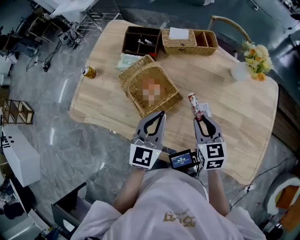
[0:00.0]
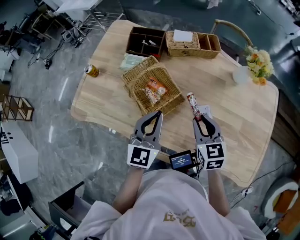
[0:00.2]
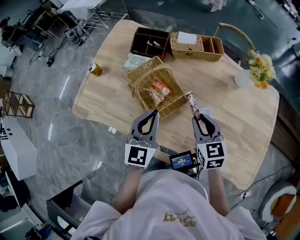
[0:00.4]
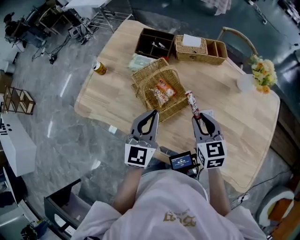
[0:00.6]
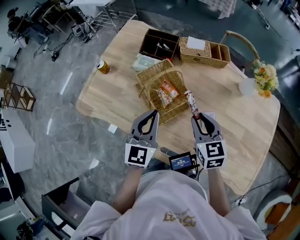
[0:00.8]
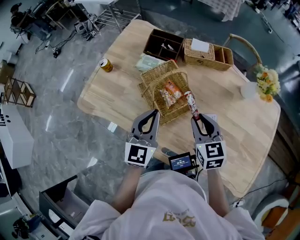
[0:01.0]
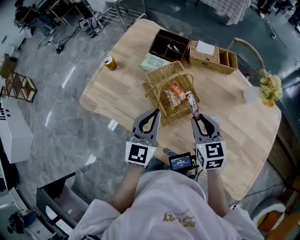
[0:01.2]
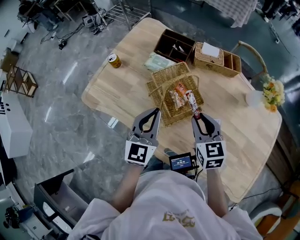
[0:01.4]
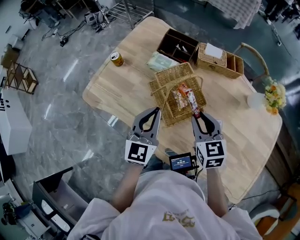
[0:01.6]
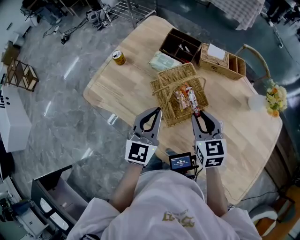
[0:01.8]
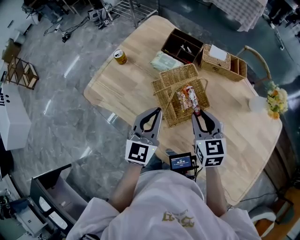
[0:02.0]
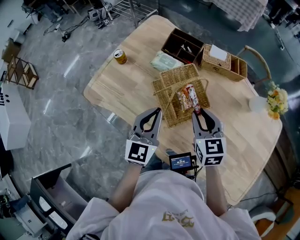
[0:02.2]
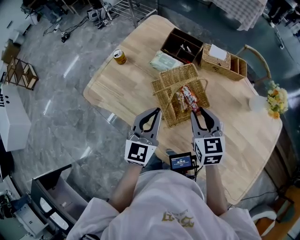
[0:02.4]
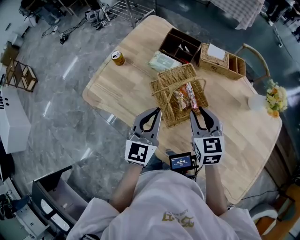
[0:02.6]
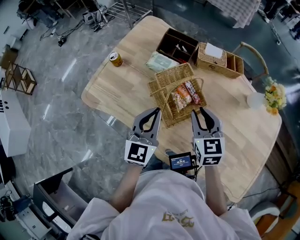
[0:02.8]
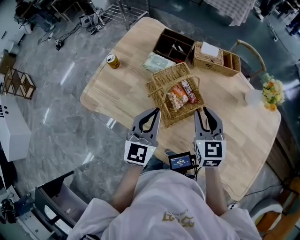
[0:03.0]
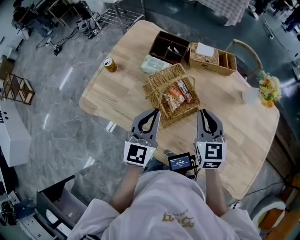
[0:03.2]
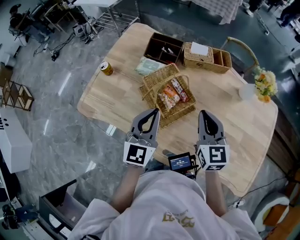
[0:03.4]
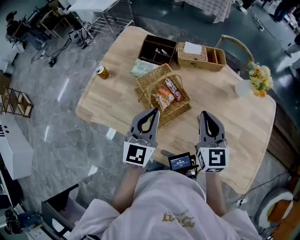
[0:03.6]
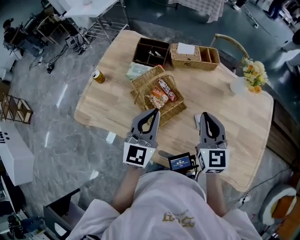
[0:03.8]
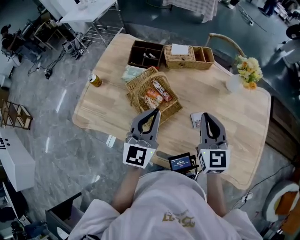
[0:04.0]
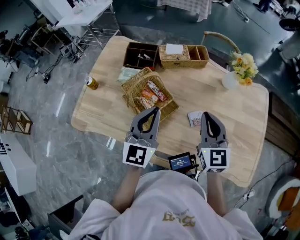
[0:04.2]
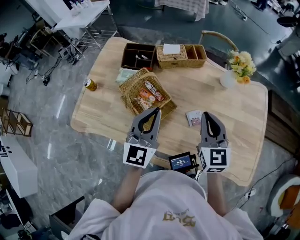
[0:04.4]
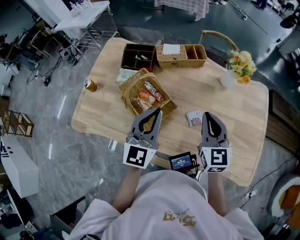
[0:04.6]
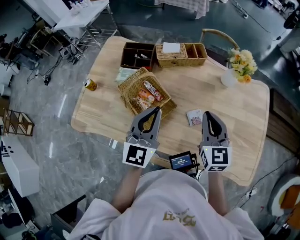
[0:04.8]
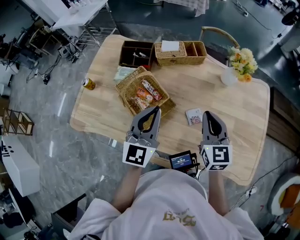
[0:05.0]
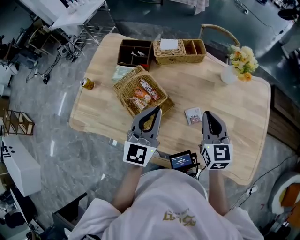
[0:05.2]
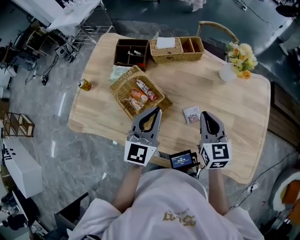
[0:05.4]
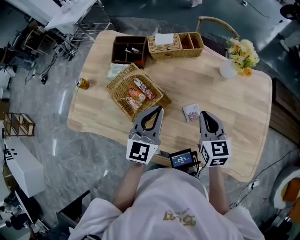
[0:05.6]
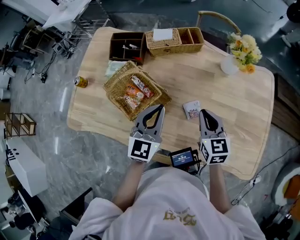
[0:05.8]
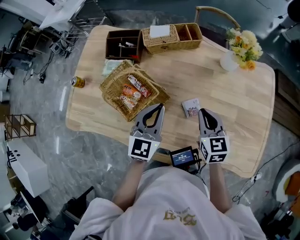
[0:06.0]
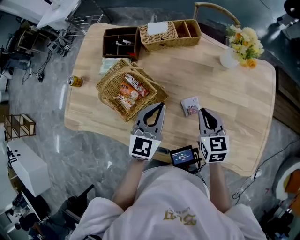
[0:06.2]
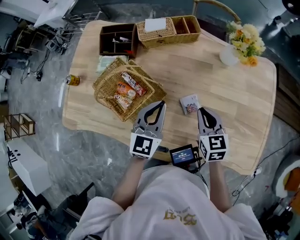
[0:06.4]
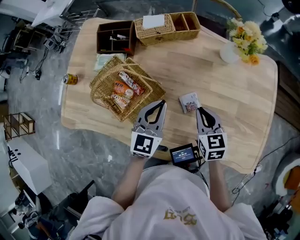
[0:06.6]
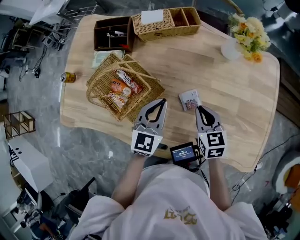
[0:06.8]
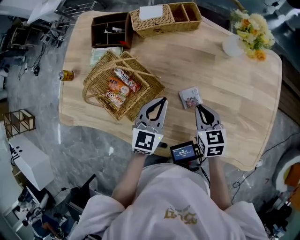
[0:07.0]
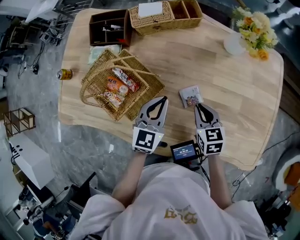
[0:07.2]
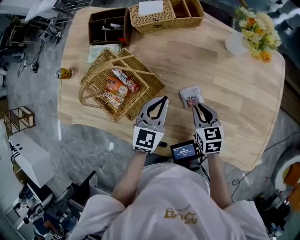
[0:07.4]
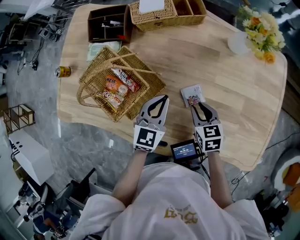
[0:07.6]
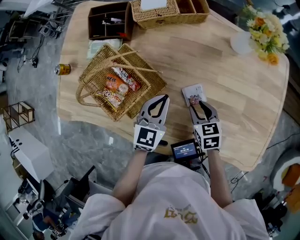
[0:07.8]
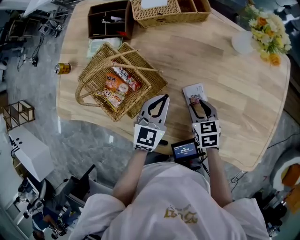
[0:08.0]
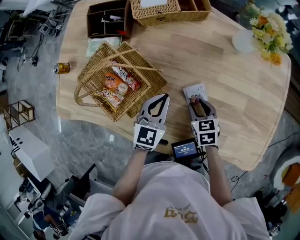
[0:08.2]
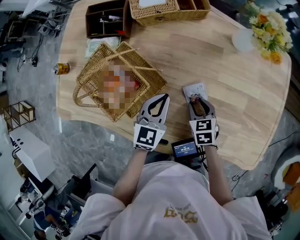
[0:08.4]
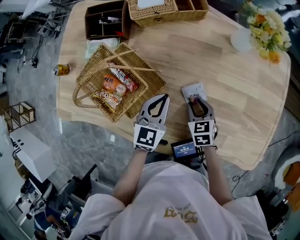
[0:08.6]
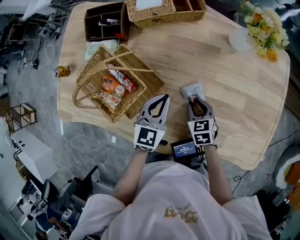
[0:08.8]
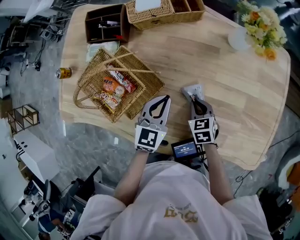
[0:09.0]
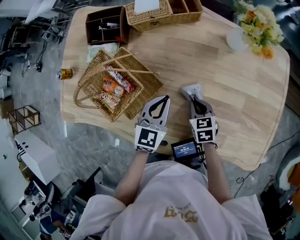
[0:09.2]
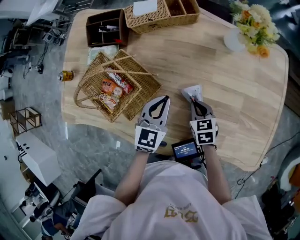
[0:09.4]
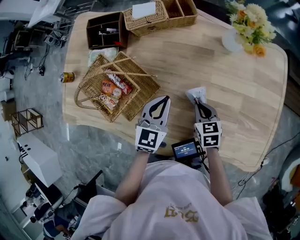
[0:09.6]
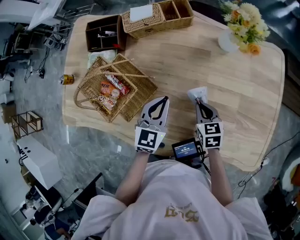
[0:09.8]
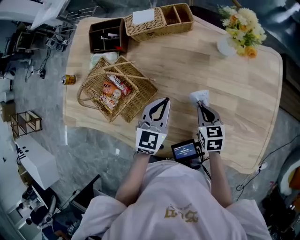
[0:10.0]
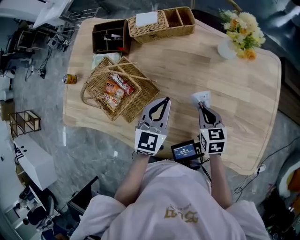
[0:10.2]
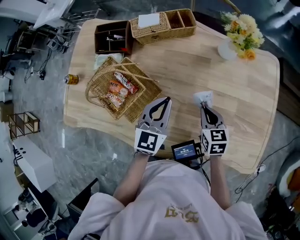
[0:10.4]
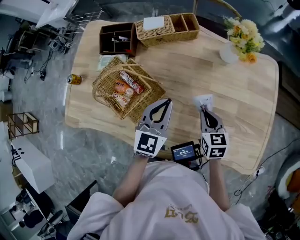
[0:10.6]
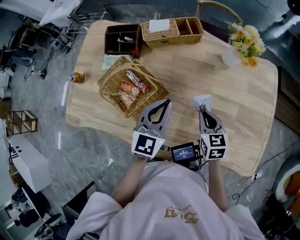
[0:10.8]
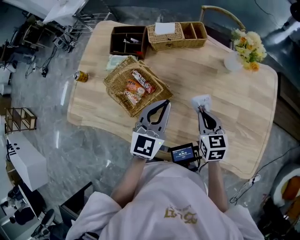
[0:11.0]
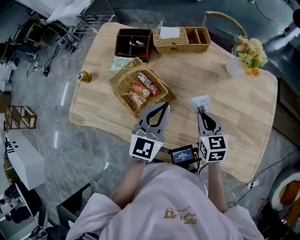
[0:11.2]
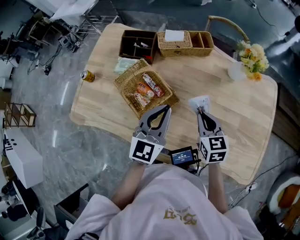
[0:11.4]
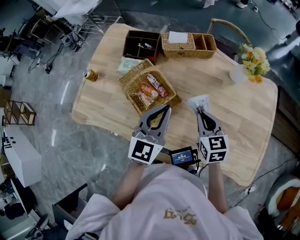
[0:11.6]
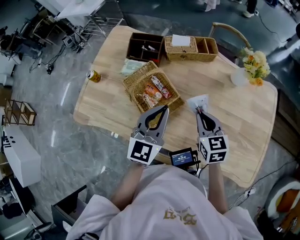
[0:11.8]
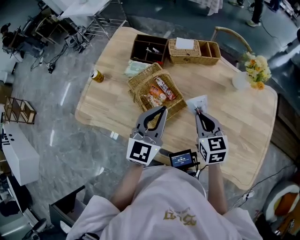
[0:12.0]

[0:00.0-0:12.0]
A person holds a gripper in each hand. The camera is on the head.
0:00.0 to 0:01.6: Both grippers move to the left, roughly 15 cm.
0:01.6 to 0:03.0: The grippers move only a little.
0:03.0 to 0:04.4: The left gripper shifts roughly 15 cm to the right and upward. The right gripper moves to the right, roughly 15 cm, and closes.
0:04.4 to 0:06.0: The right gripper goes about 15 cm downward. The left gripper heads downward and to the right, covering roughly 10 cm.
0:06.0 to 0:07.6: The two grippers go roughly 15 cm downward. The right gripper swivels roughly 20 degrees.
0:07.6 to 0:09.0: The grippers make only small movements.
0:09.0 to 0:10.4: The right gripper shifts roughly 10 cm upward and to the right; the left gripper travels upward by about 10 cm.
0:10.4 to 0:12.0: Both grippers travel together to the left and upward, approximately 20 cm.

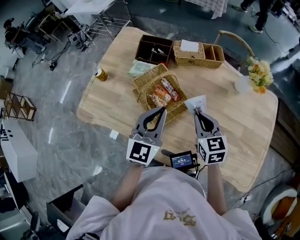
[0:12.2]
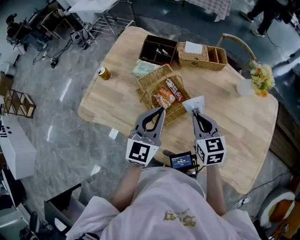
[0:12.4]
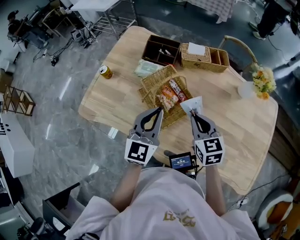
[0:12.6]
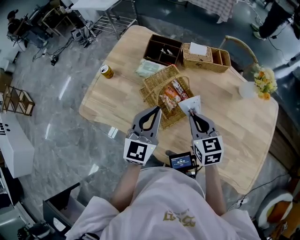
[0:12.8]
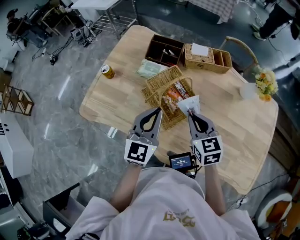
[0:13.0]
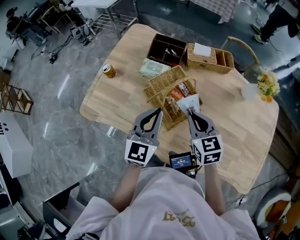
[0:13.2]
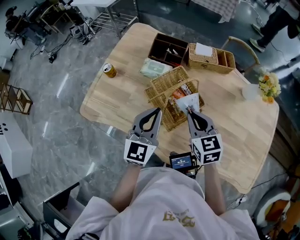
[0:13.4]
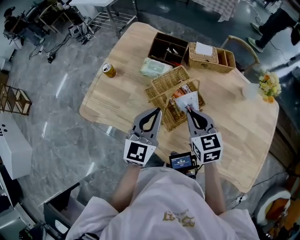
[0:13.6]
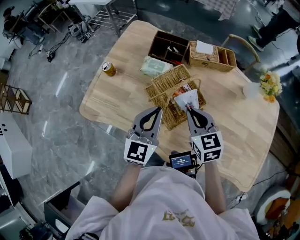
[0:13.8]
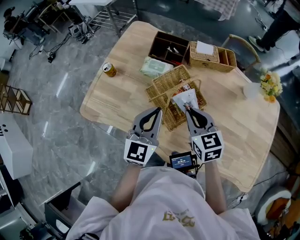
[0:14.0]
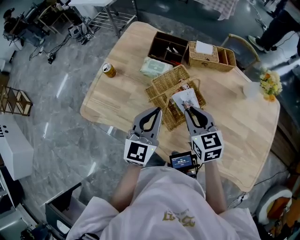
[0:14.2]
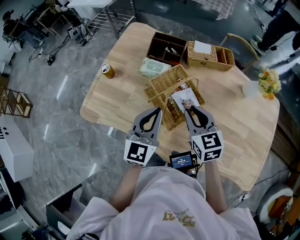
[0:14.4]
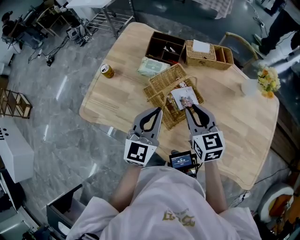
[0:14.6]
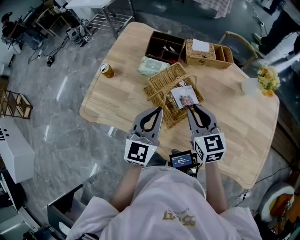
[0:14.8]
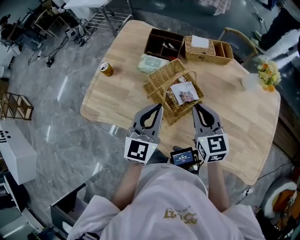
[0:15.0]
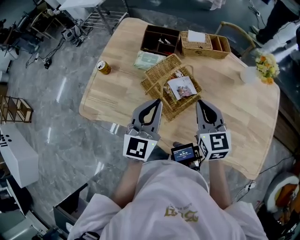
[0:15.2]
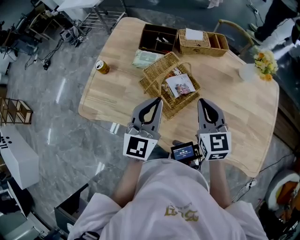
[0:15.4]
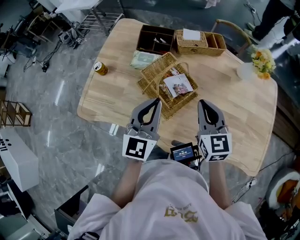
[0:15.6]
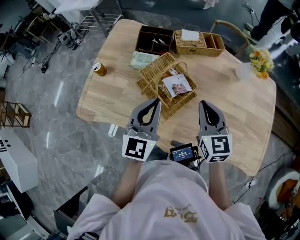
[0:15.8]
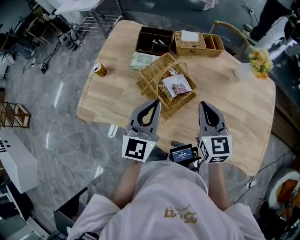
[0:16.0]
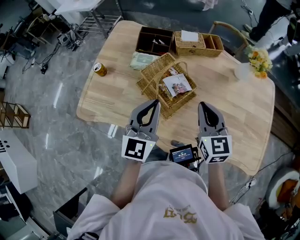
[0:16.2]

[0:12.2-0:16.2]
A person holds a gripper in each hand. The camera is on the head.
0:12.2 to 0:13.6: The two grippers go about 10 cm to the left.
0:13.6 to 0:14.8: The grippers move only a little.
0:14.8 to 0:16.2: The right gripper moves to the right, about 5 cm.

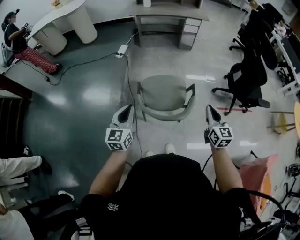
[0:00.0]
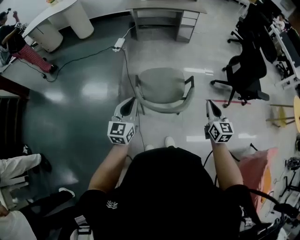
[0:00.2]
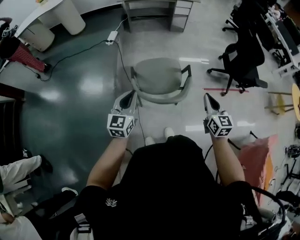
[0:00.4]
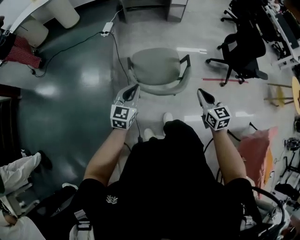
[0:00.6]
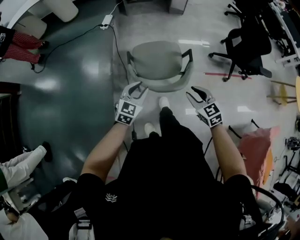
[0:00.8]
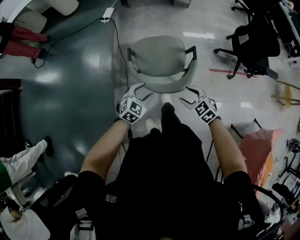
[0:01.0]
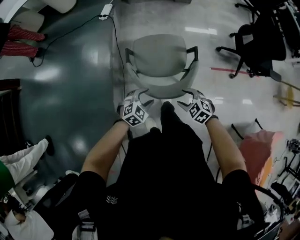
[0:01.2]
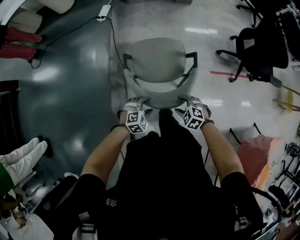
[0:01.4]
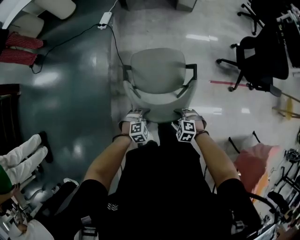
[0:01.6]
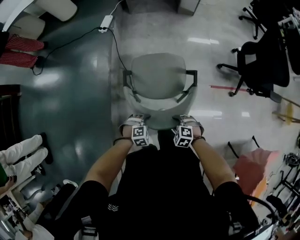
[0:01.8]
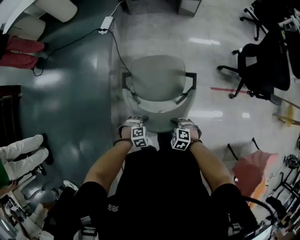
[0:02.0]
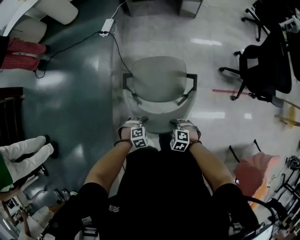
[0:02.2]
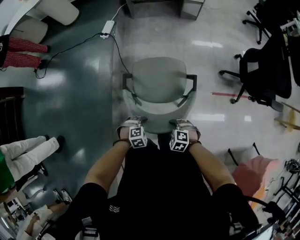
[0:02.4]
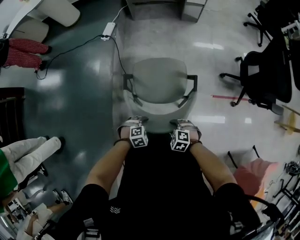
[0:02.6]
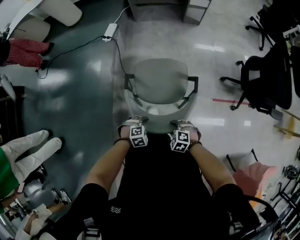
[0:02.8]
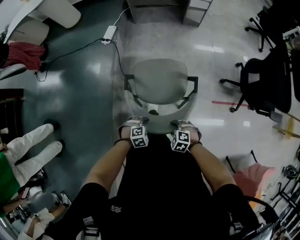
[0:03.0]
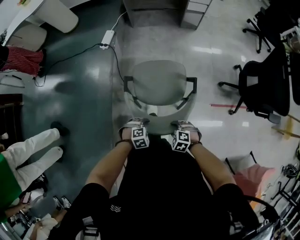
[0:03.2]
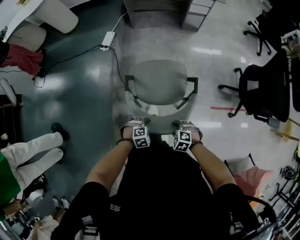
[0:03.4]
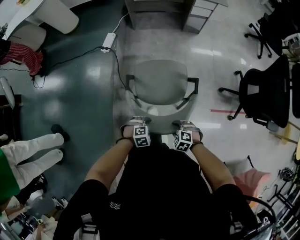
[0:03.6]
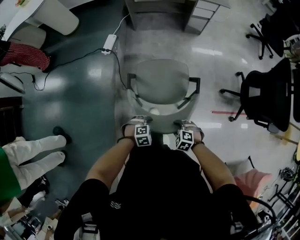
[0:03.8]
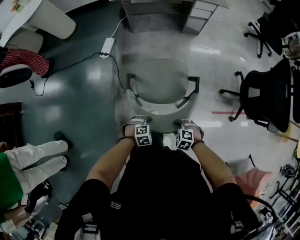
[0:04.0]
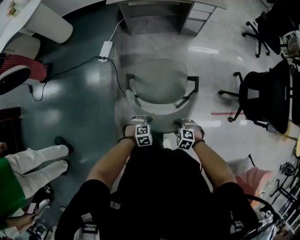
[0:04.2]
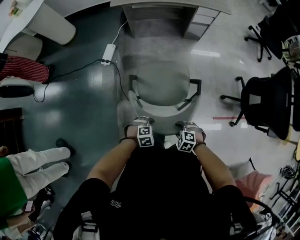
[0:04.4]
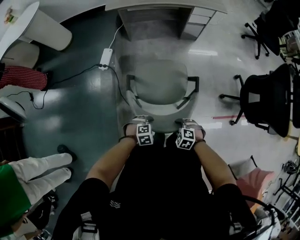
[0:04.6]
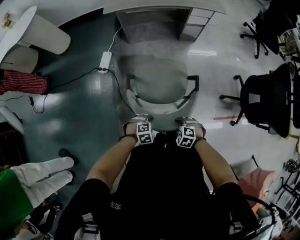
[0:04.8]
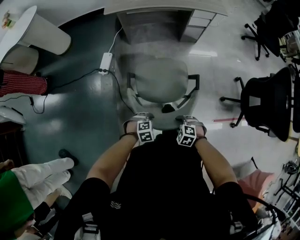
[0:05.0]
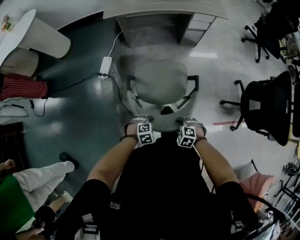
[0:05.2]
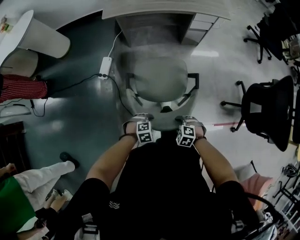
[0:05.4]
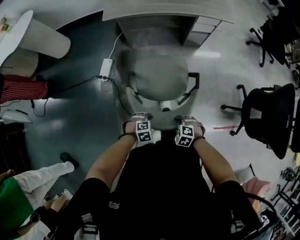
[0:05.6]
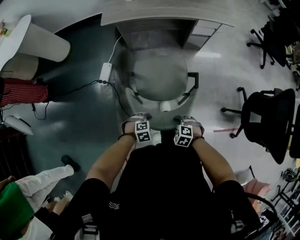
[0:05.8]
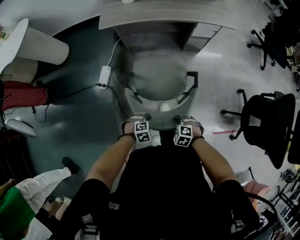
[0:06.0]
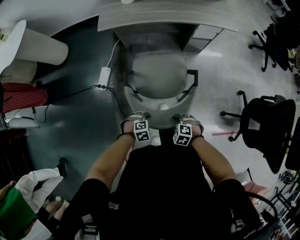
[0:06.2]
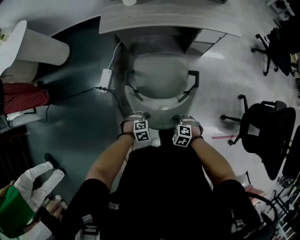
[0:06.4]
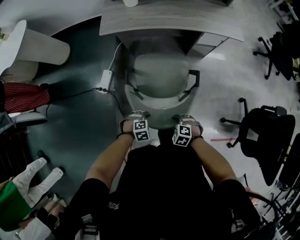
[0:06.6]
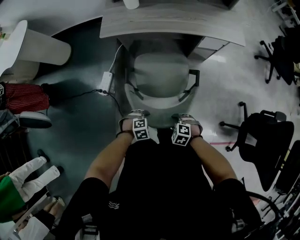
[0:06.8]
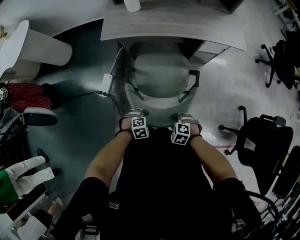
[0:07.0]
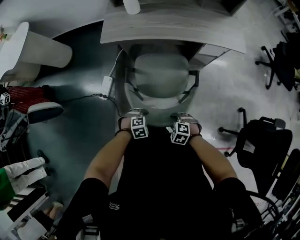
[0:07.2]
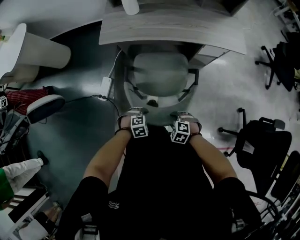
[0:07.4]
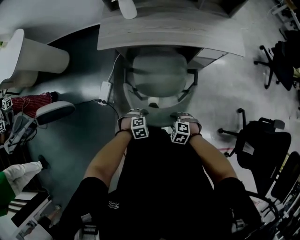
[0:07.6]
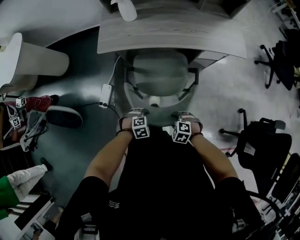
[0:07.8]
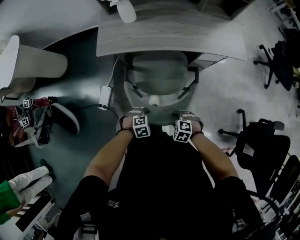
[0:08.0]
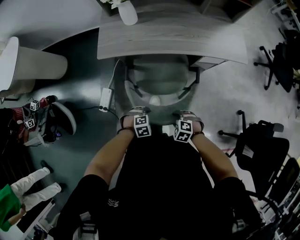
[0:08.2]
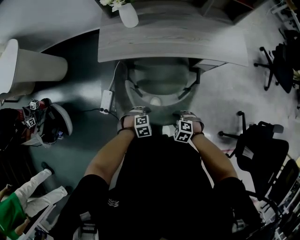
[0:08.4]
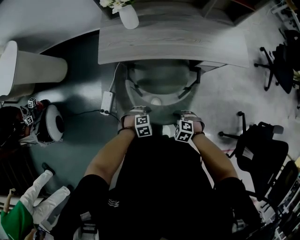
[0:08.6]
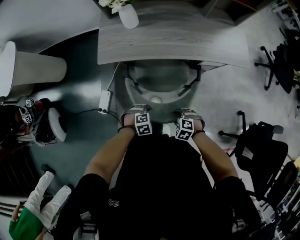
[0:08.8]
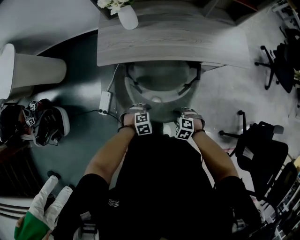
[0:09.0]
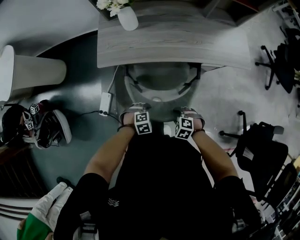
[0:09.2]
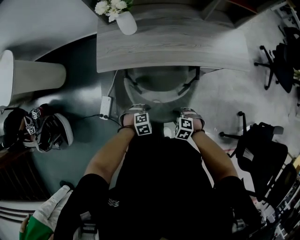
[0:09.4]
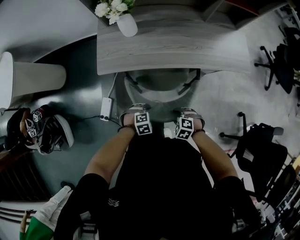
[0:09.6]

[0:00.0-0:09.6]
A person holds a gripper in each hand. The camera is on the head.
0:00.0 to 0:01.6: The left gripper is displaced downward and to the right by approximately 40 cm, points its fingers approximately 50 degrees further downward, and opens. The right gripper moves downward, some 35 cm, points its fingers roughly 50 degrees further downward, and opens its fingers.
0:01.6 to 0:03.2: The right gripper ends up approximately 20 cm from where it was. Meanwhile the left gripper ends up approximately 15 cm from where it was.
0:03.2 to 0:04.8: The left gripper shifts by some 25 cm. The right gripper changes place by approximately 25 cm.
0:04.8 to 0:06.4: The right gripper moves about 30 cm. The left gripper ends up about 30 cm from where it was.
0:06.4 to 0:08.0: The left gripper shifts by some 25 cm, while the right gripper ends up about 25 cm from where it was.
0:08.0 to 0:09.6: The left gripper ends up roughly 15 cm from where it was. The right gripper ends up approximately 15 cm from where it was.
